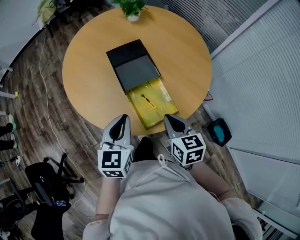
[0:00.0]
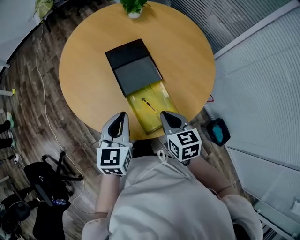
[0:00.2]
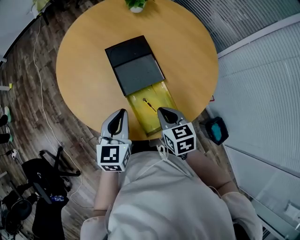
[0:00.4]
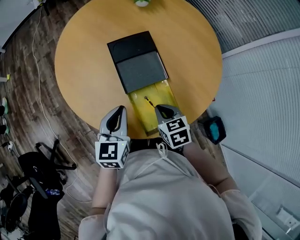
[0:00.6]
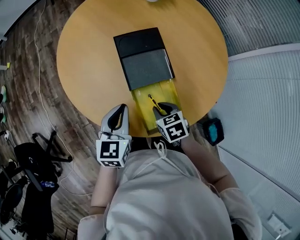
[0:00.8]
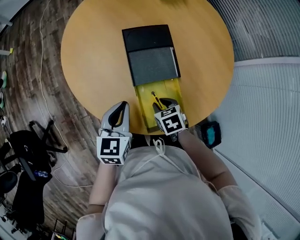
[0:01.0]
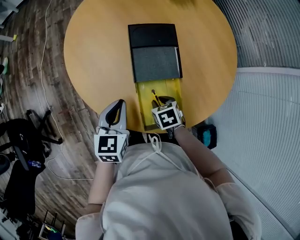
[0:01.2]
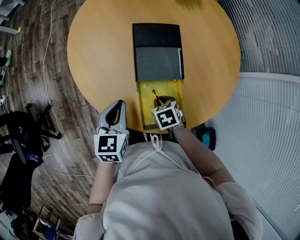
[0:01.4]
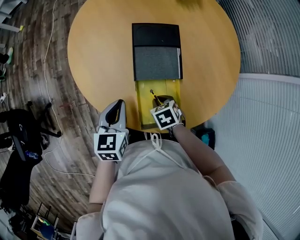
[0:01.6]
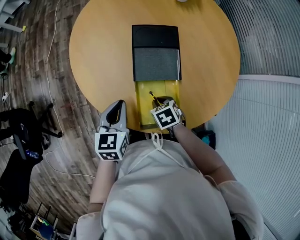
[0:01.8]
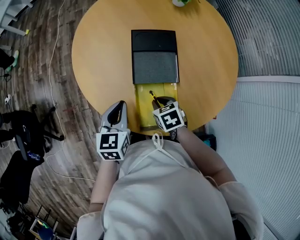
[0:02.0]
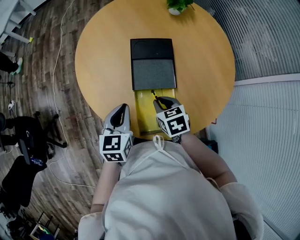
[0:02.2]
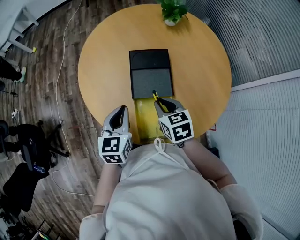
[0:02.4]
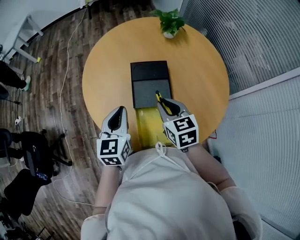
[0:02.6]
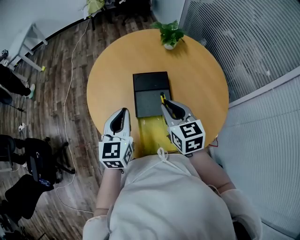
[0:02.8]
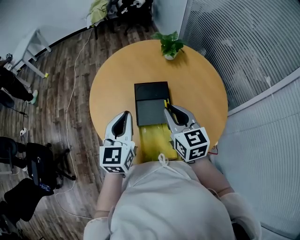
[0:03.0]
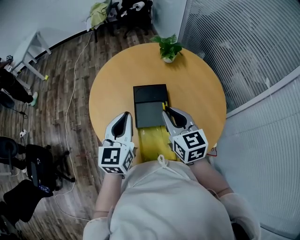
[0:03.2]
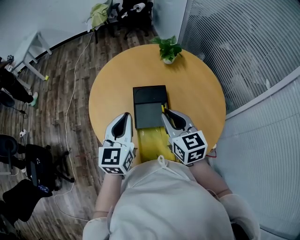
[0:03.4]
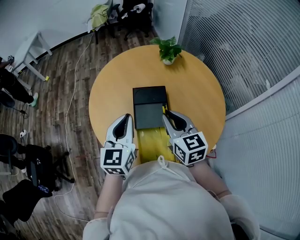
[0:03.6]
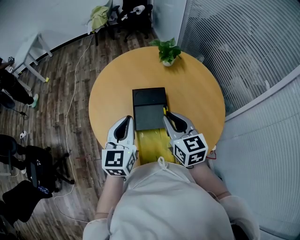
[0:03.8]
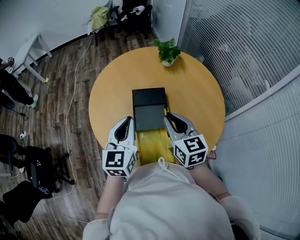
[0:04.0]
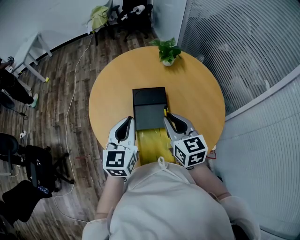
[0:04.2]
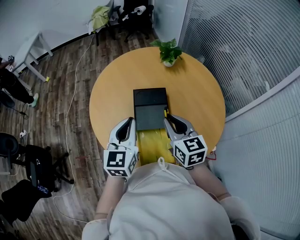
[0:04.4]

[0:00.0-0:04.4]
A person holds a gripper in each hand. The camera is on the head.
0:00.0 to 0:01.4: The right gripper moves downward and forward, approximately 25 cm, and tilts its fingers roughly 40 degrees downward, while the left gripper goes roughly 15 cm downward and forward, and swivels some 20 degrees.
0:01.4 to 0:03.0: The right gripper shifts some 35 cm upward, and angles its fingers upward, by some 50 degrees, while the left gripper is displaced upward by roughly 20 cm, and swivels roughly 30 degrees.
0:03.0 to 0:04.4: There are only small adjustments of the grippers.

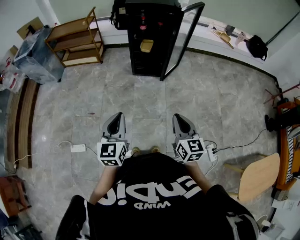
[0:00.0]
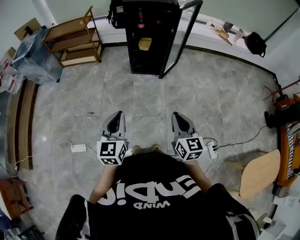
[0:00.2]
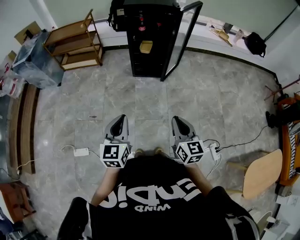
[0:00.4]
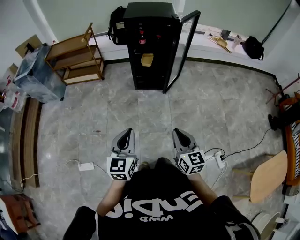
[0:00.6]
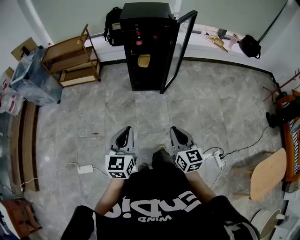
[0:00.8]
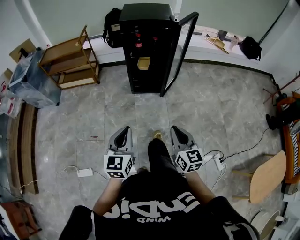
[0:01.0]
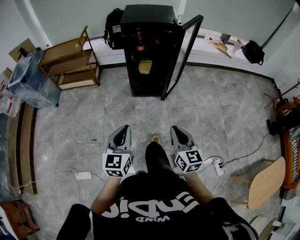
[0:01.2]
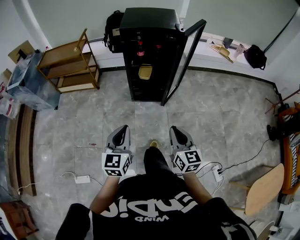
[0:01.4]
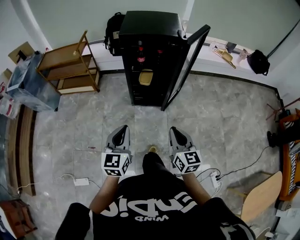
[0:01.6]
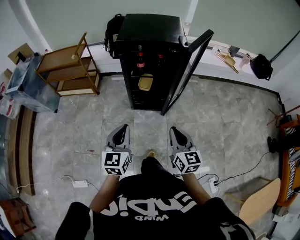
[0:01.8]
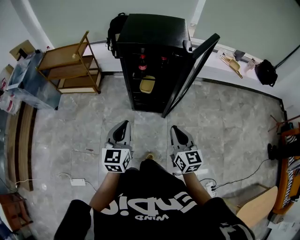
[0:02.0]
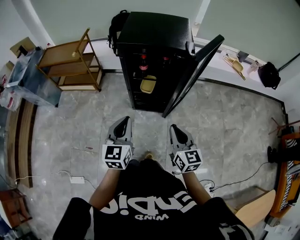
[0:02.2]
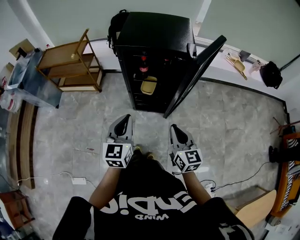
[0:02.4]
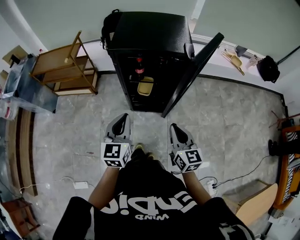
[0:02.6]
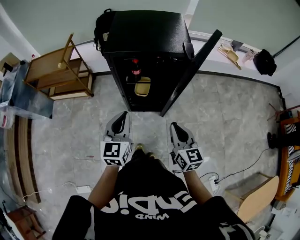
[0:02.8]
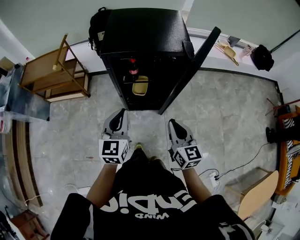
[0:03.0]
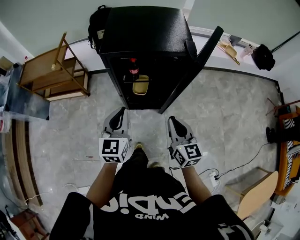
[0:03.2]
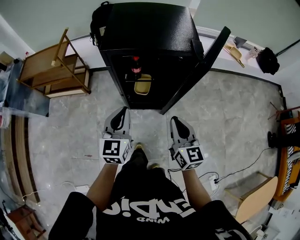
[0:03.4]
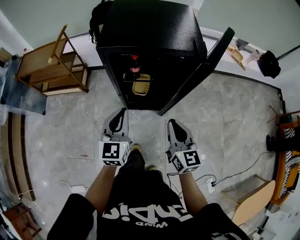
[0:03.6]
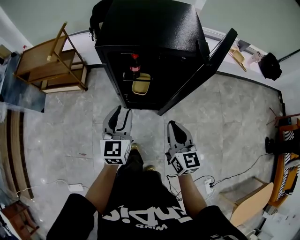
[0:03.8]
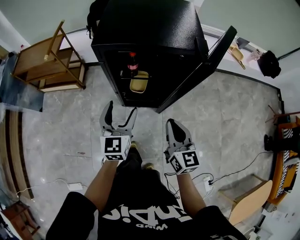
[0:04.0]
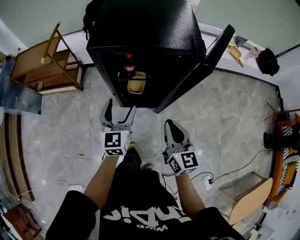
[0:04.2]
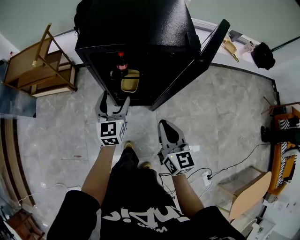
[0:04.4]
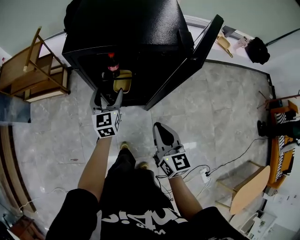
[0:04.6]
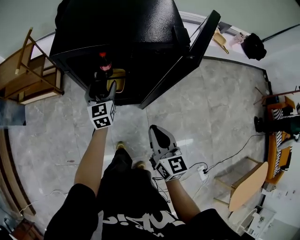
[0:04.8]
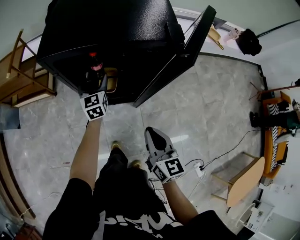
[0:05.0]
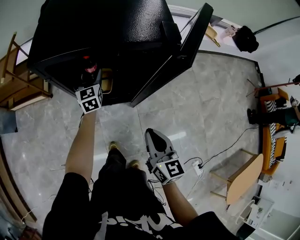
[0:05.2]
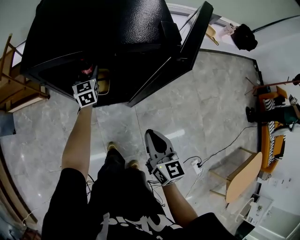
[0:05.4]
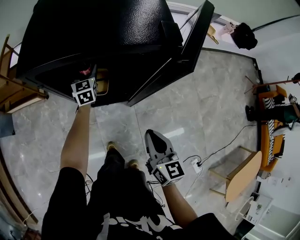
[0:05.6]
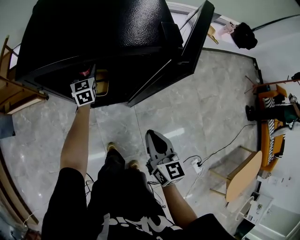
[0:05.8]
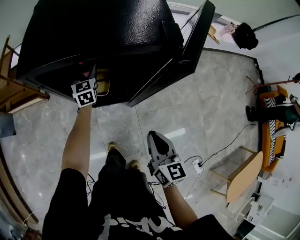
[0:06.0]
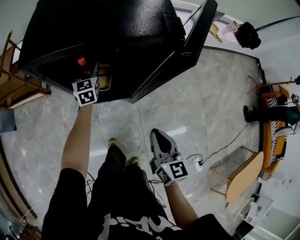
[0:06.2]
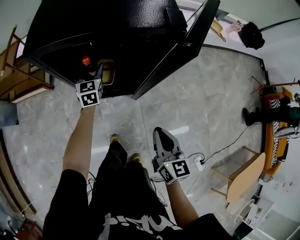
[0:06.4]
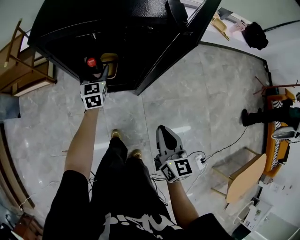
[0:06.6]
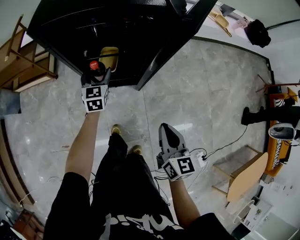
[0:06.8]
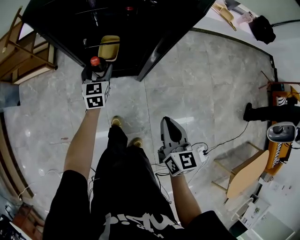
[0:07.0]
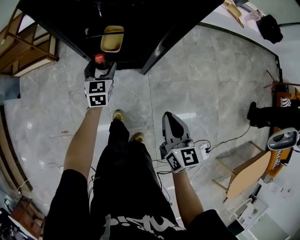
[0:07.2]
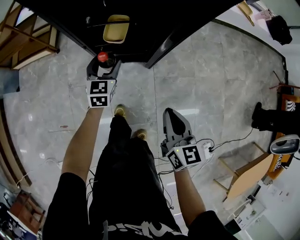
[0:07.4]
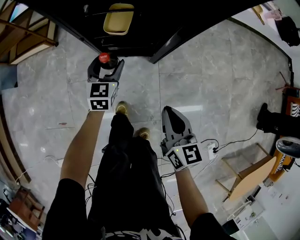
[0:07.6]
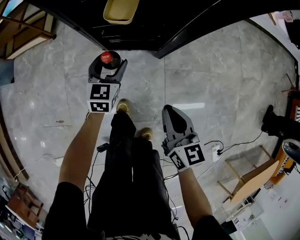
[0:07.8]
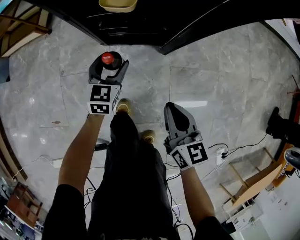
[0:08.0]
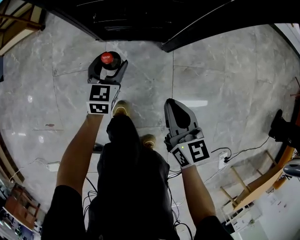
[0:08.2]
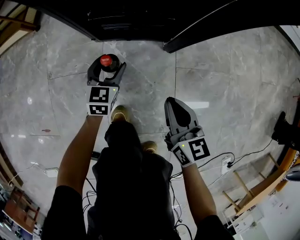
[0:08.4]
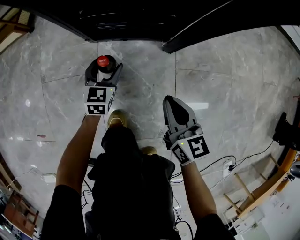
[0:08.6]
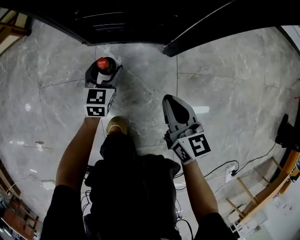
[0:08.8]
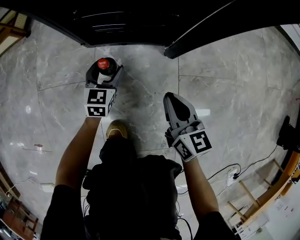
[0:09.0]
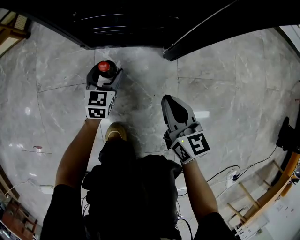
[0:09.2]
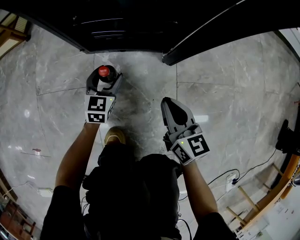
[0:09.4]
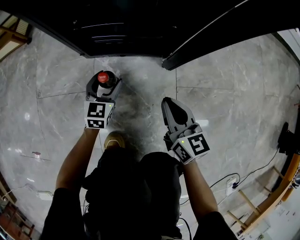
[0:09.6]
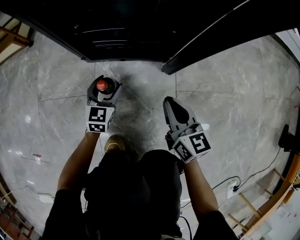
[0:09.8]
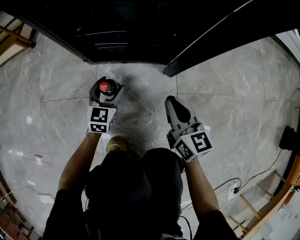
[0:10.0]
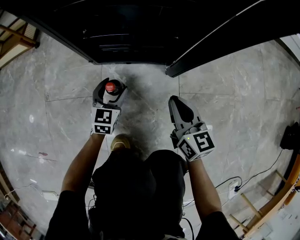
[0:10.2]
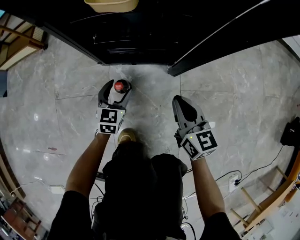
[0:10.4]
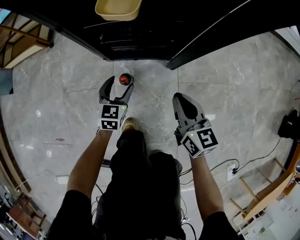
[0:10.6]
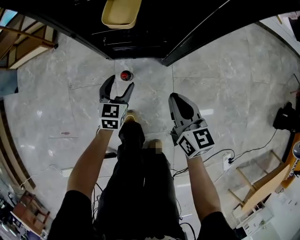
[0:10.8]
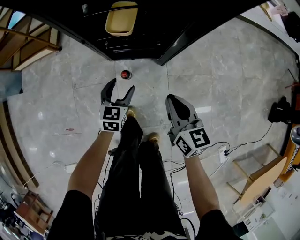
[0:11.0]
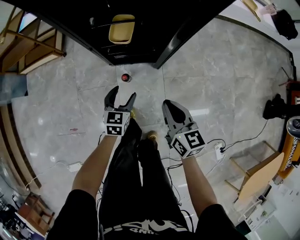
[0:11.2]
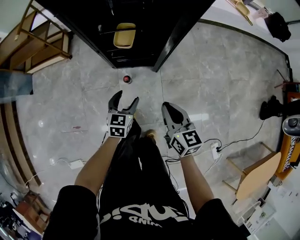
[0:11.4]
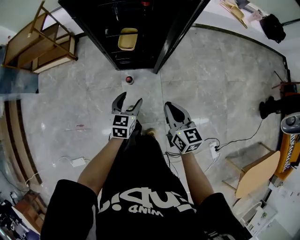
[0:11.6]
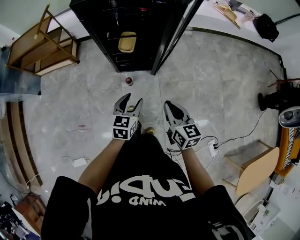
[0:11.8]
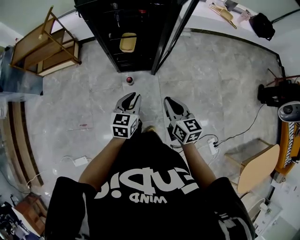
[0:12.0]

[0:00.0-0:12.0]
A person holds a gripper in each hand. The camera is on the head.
0:00.0 to 0:01.6: Both grippers move forward, roughly 25 cm.
0:01.6 to 0:03.0: Both grippers move forward, approximately 25 cm.
0:03.0 to 0:04.4: The left gripper goes some 15 cm forward and downward, and opens up. Meanwhile the right gripper travels downward by about 5 cm.
0:04.4 to 0:06.0: The left gripper is displaced forward and downward by roughly 25 cm; the right gripper goes approximately 10 cm downward and to the right.
0:06.0 to 0:07.6: The left gripper travels backward and downward by approximately 30 cm. Meanwhile the right gripper goes some 20 cm downward.
0:07.6 to 0:09.0: The two grippers go about 40 cm downward.
0:09.0 to 0:10.4: Both grippers move upward, approximately 5 cm.
0:10.4 to 0:12.0: The right gripper moves upward and backward, some 60 cm; the left gripper goes approximately 60 cm upward, and closes up.

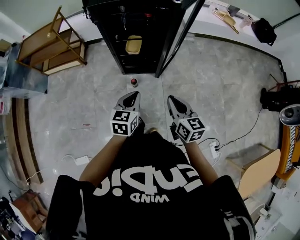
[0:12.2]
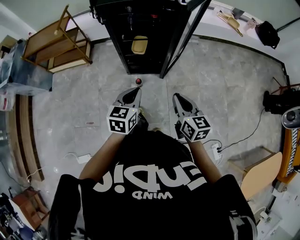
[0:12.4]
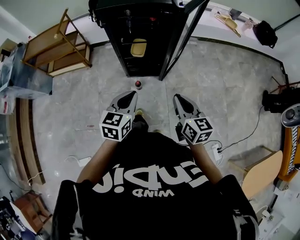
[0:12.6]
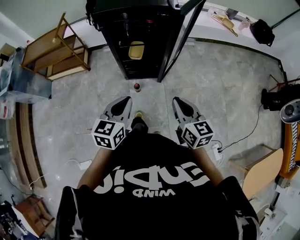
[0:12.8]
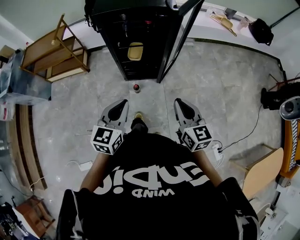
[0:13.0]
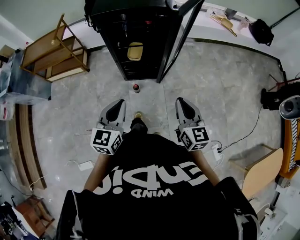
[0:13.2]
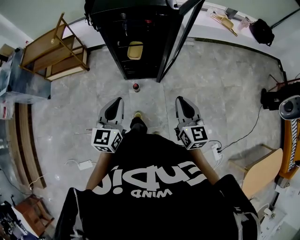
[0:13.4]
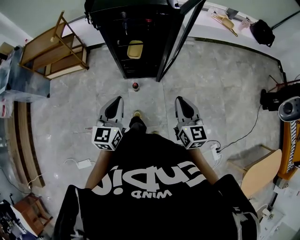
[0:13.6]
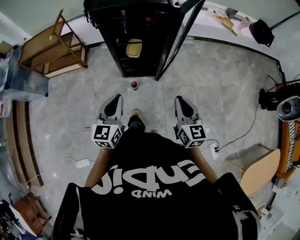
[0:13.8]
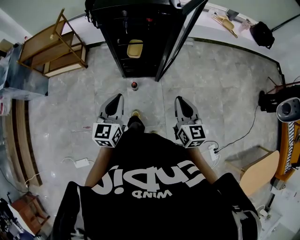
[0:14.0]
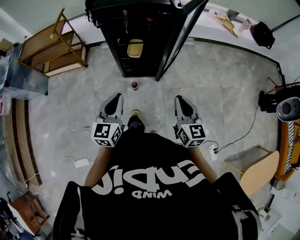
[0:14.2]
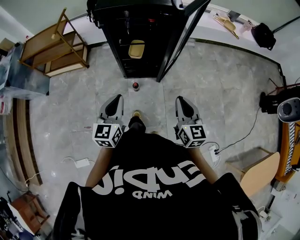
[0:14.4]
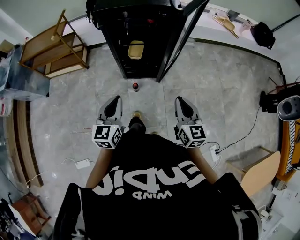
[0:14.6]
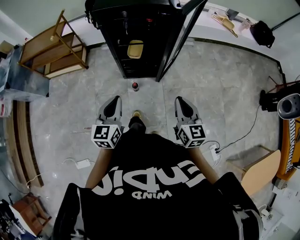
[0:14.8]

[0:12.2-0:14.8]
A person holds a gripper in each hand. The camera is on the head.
0:12.2 to 0:13.4: The left gripper moves upward and to the left, some 10 cm, while the right gripper travels upward by some 5 cm.
0:13.4 to 0:14.8: The grippers make only small movements.

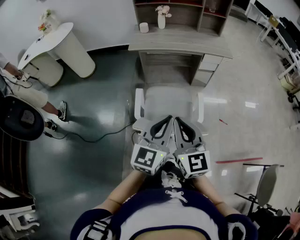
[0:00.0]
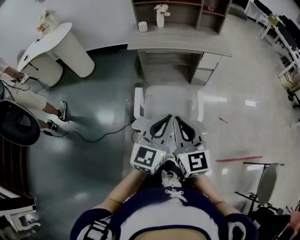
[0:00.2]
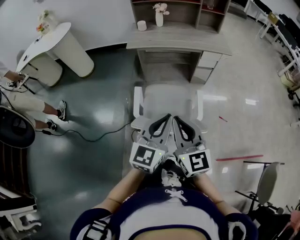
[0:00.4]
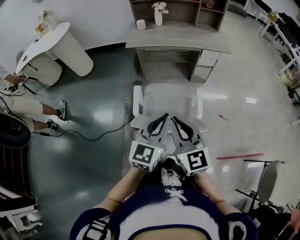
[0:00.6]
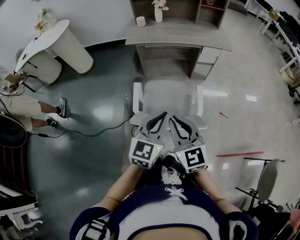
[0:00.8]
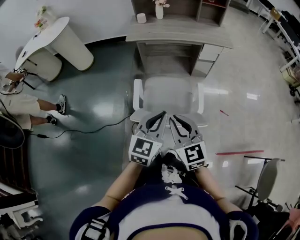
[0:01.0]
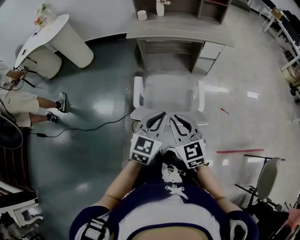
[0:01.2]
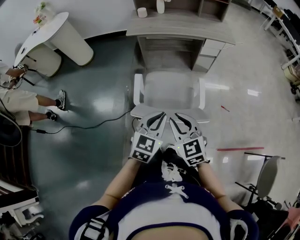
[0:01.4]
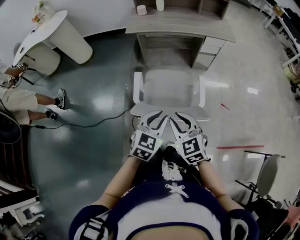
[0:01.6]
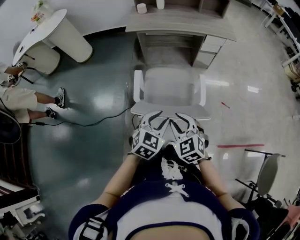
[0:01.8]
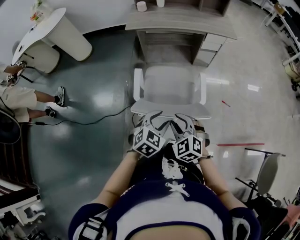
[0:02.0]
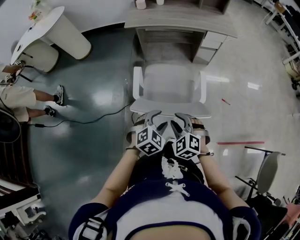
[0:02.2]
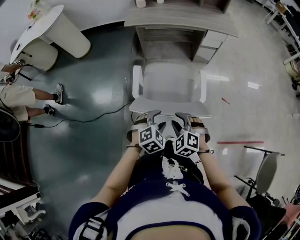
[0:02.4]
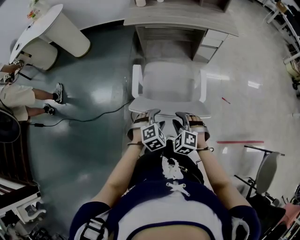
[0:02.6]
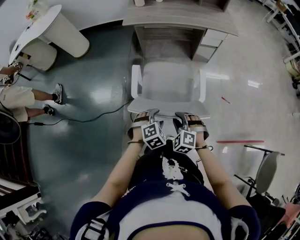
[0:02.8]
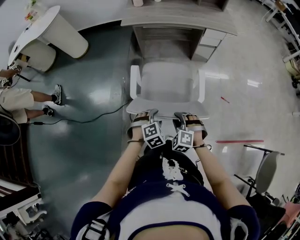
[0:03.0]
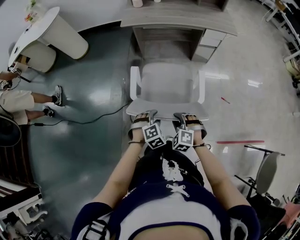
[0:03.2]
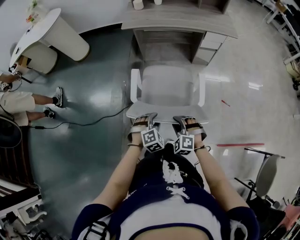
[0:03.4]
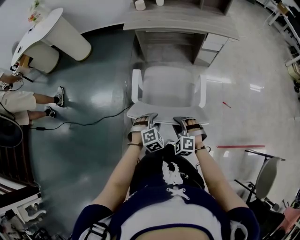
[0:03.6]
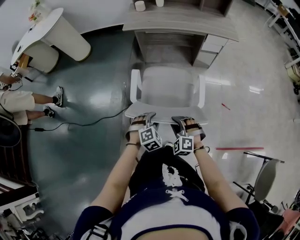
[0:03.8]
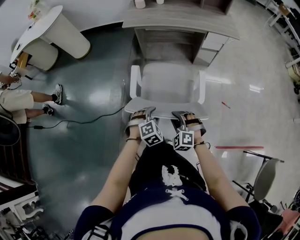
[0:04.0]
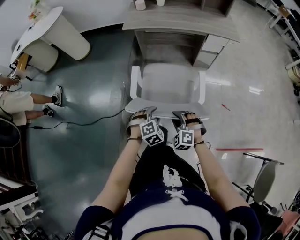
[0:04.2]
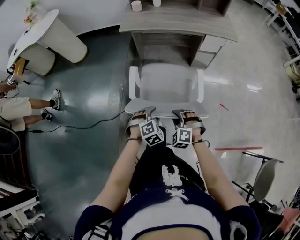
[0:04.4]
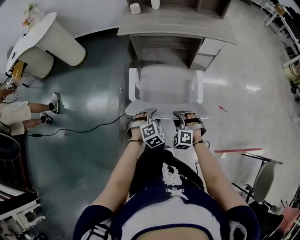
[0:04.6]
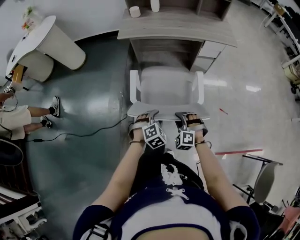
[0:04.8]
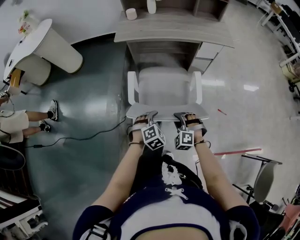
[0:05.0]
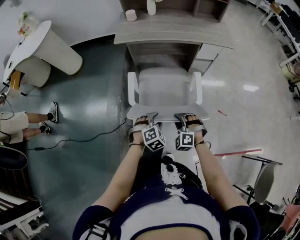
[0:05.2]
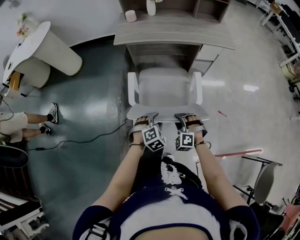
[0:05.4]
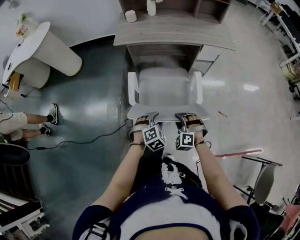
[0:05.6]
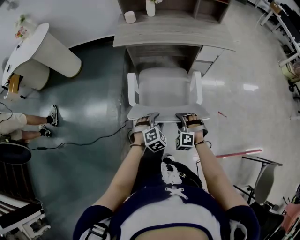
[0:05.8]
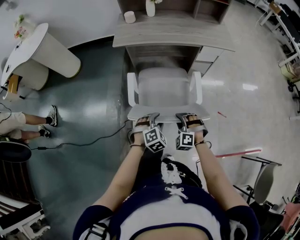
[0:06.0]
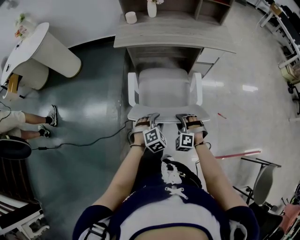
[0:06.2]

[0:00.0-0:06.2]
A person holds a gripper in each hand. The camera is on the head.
0:00.0 to 0:01.6: Both grippers move downward, approximately 15 cm. The left gripper rotates about 30 degrees. The right gripper swivels roughly 30 degrees.
0:01.6 to 0:03.2: Both grippers move downward, some 20 cm. The left gripper tips its fingers downward by roughly 30 degrees, and opens up. Meanwhile the right gripper changes its angle by some 50 degrees.
0:03.2 to 0:04.6: The two grippers go about 10 cm forward.
0:04.6 to 0:06.2: Both grippers move forward, approximately 10 cm.
